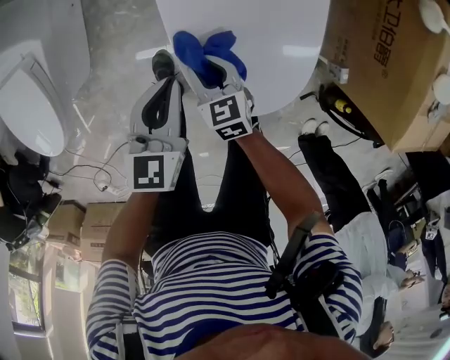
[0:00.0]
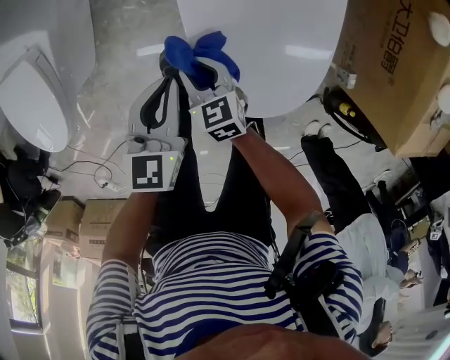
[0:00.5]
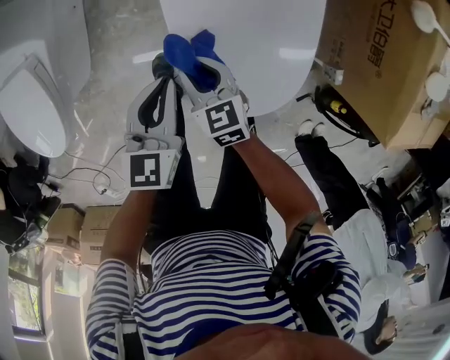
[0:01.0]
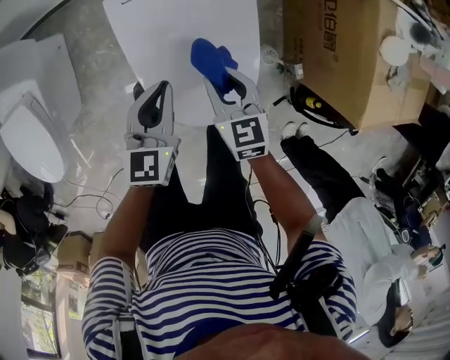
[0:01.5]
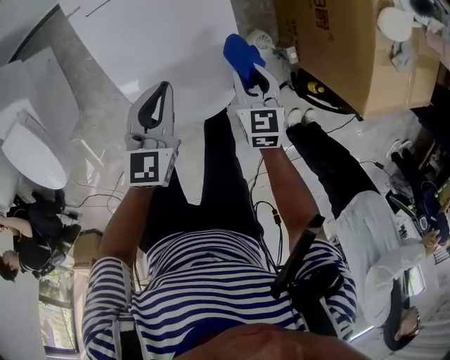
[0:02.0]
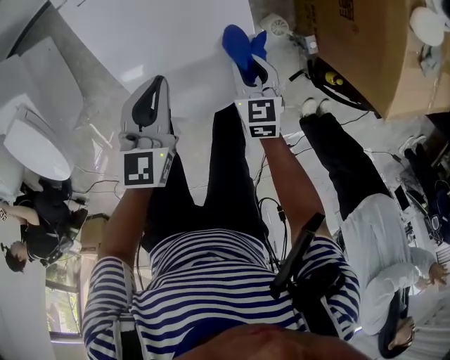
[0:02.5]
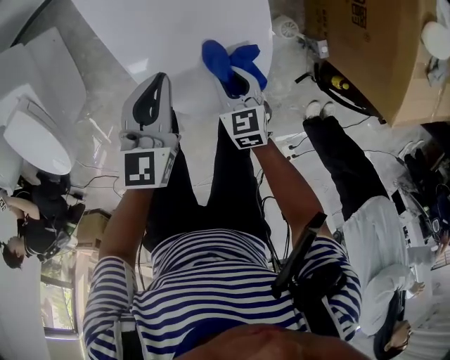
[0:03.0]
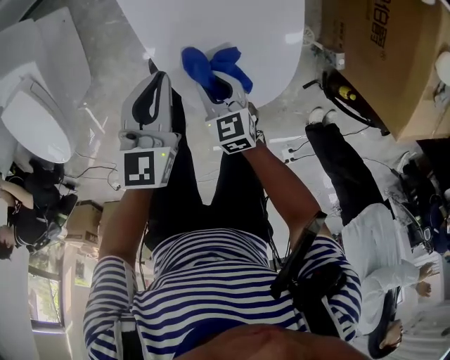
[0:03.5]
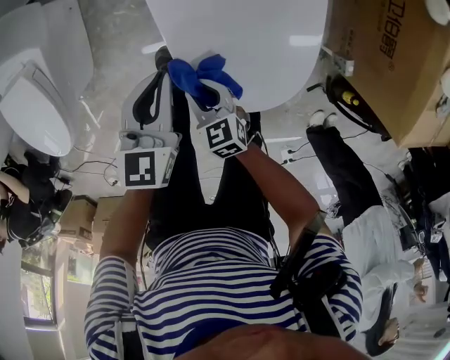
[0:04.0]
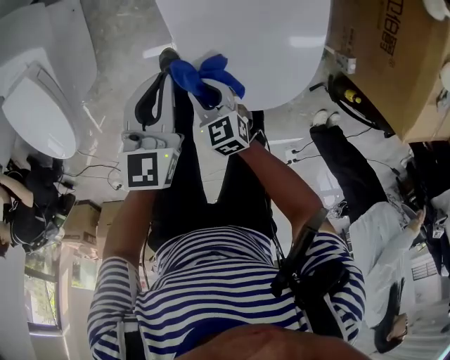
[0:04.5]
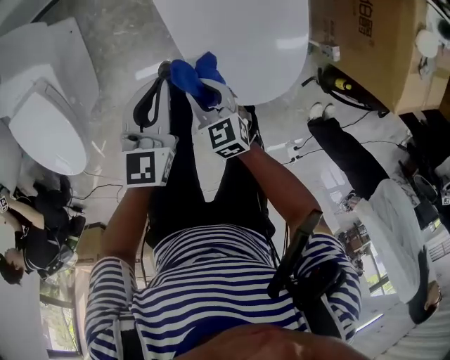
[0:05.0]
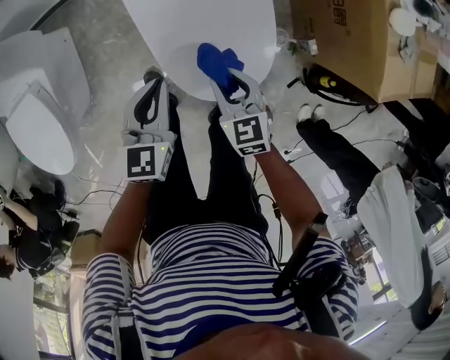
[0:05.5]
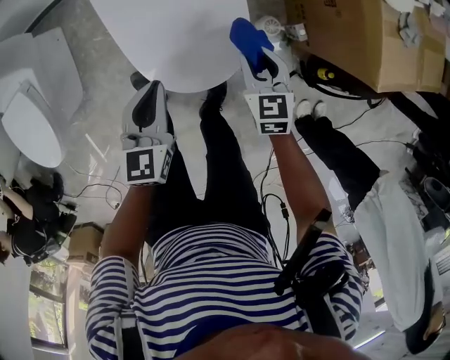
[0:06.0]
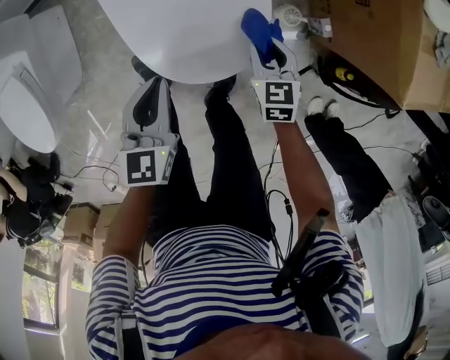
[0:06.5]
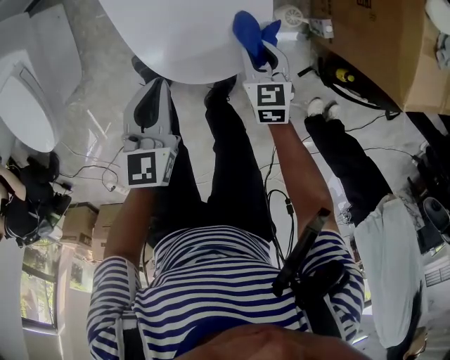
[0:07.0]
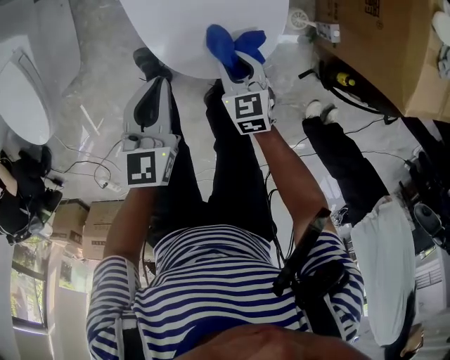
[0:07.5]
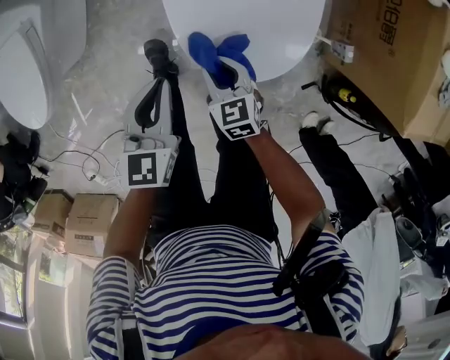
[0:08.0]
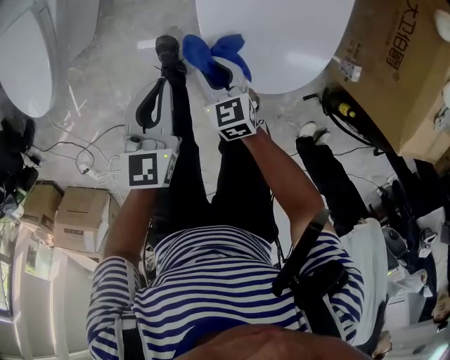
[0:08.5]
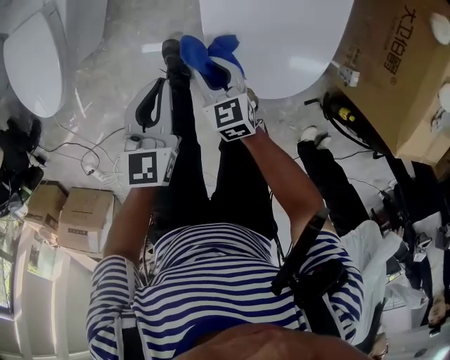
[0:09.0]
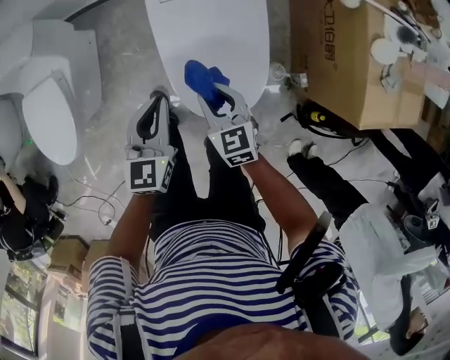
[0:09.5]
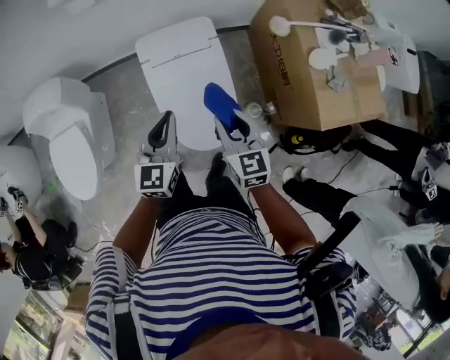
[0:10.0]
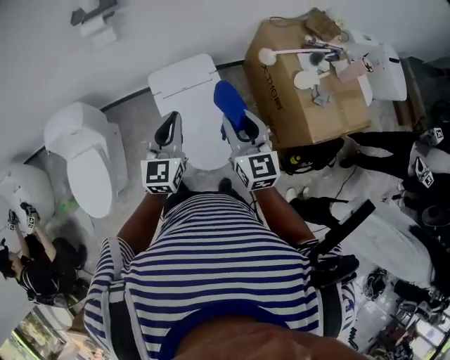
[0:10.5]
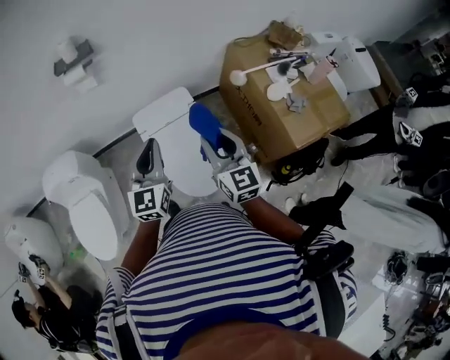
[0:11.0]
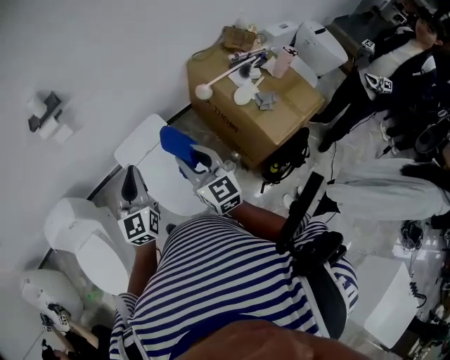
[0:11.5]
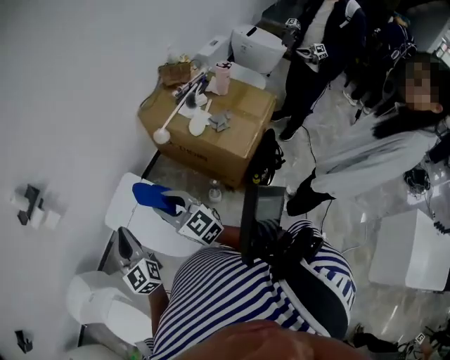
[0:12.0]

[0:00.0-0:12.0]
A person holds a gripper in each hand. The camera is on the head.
0:00.0 to 0:02.0: The right gripper shifts by roughly 30 cm, and changes its angle by approximately 30 degrees, while the left gripper shifts by approximately 20 cm.
0:02.0 to 0:04.0: The left gripper changes place by approximately 20 cm. The right gripper changes place by approximately 35 cm, and swivels some 30 degrees.
0:04.0 to 0:06.0: The right gripper heads to the right, covering approximately 30 cm, and changes its angle by some 30 degrees. The left gripper heads to the right, backward and upward, covering some 20 cm.
0:06.0 to 0:08.0: The left gripper shifts approximately 15 cm to the left and downward. The right gripper shifts roughly 25 cm to the left and downward, and turns by roughly 30 degrees.
0:08.0 to 0:10.0: Both grippers move upward, approximately 40 cm. The right gripper changes its angle by some 30 degrees, while the left gripper rotates approximately 20 degrees.
0:10.0 to 0:12.0: Both grippers travel together upward, roughly 15 cm.

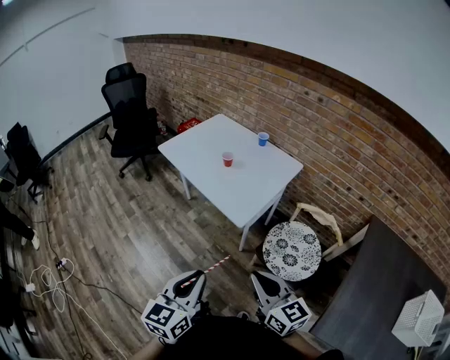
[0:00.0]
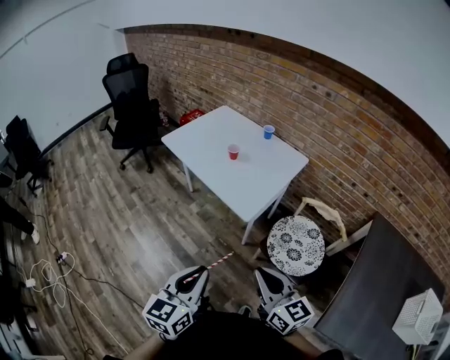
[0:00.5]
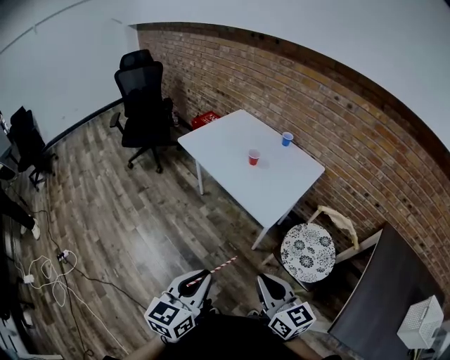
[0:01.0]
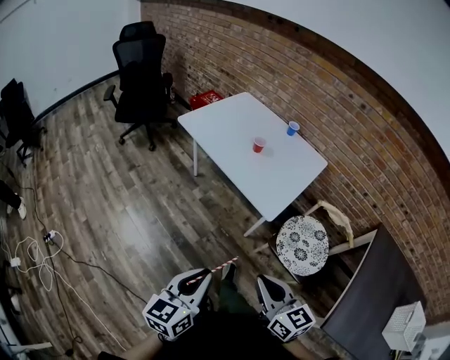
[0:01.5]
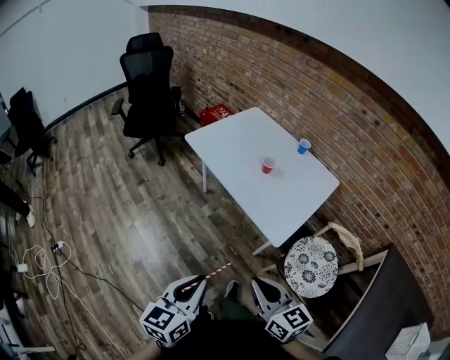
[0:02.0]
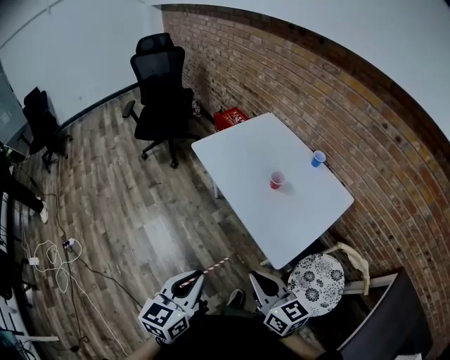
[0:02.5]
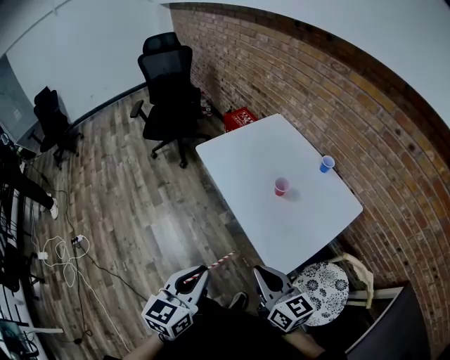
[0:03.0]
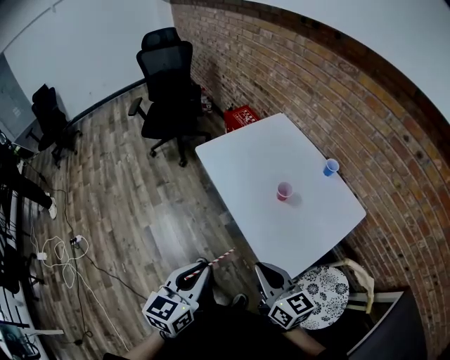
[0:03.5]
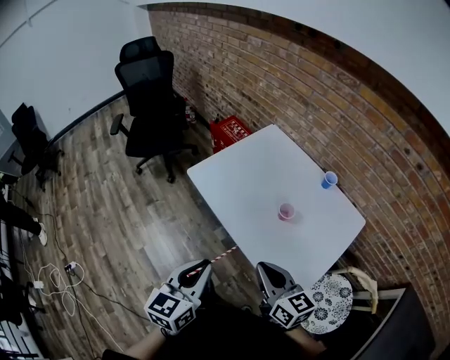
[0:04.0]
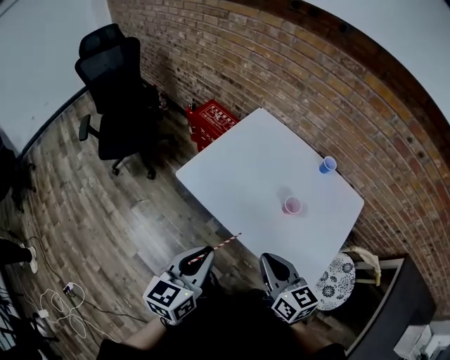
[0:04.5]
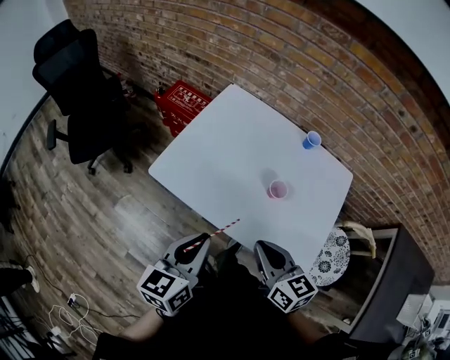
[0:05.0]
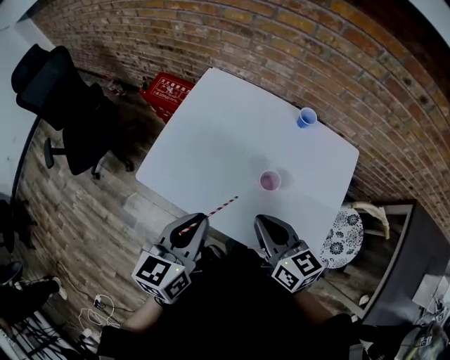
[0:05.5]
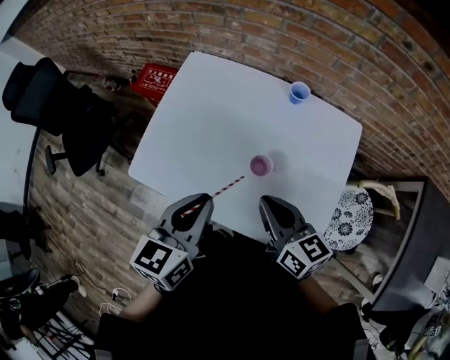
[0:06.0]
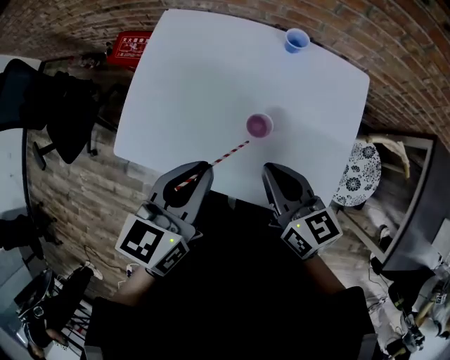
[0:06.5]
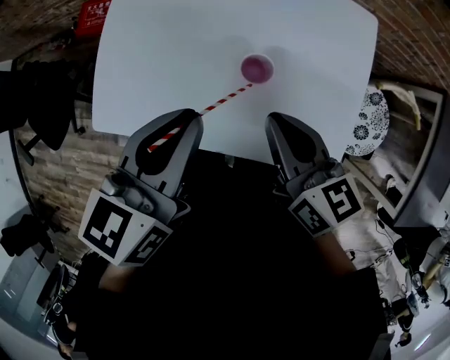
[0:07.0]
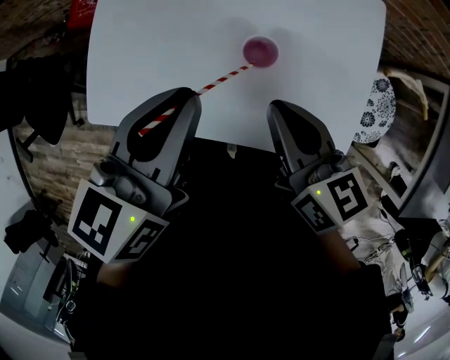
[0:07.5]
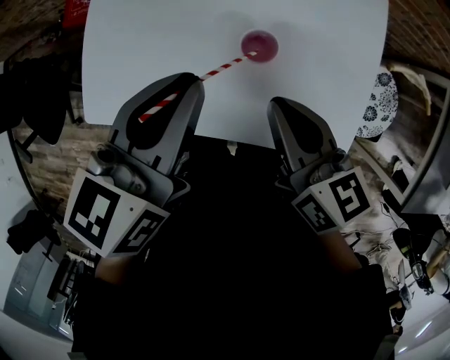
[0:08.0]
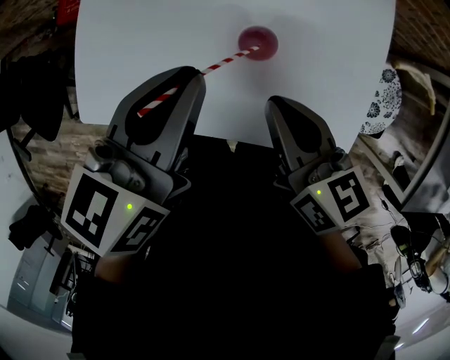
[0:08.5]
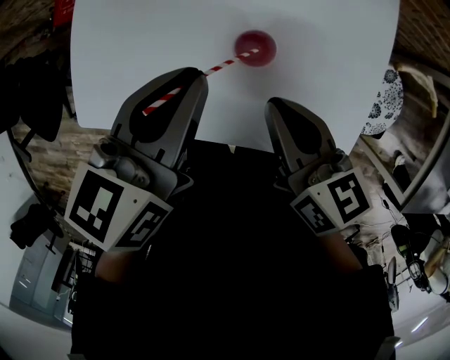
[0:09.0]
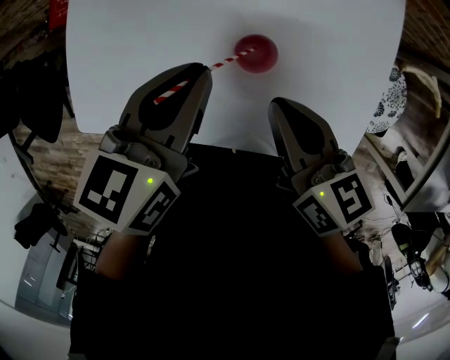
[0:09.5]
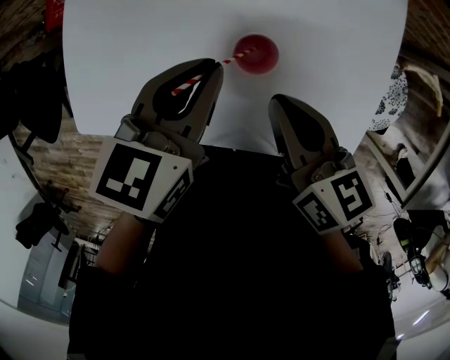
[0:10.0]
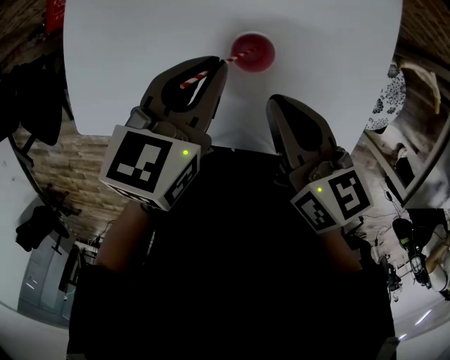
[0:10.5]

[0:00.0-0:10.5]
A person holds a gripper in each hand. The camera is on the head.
0:00.0 to 0:02.0: Both grippers travel together to the left and forward, some 20 cm.
0:02.0 to 0:04.0: The two grippers go roughly 35 cm forward.
0:04.0 to 0:06.5: The left gripper moves roughly 30 cm, and rotates some 40 degrees. Meanwhile the right gripper shifts by roughly 25 cm, and rotates roughly 30 degrees.
0:06.5 to 0:08.5: The left gripper goes some 10 cm downward and forward, while the right gripper is displaced downward by about 10 cm.
0:08.5 to 0:10.5: The left gripper heads downward, covering about 10 cm.

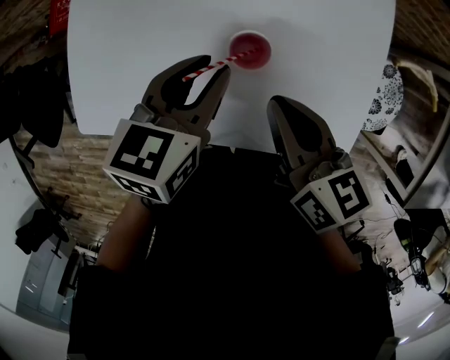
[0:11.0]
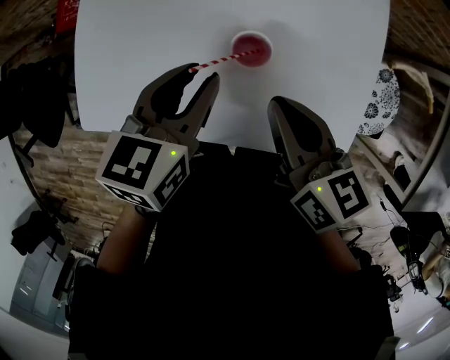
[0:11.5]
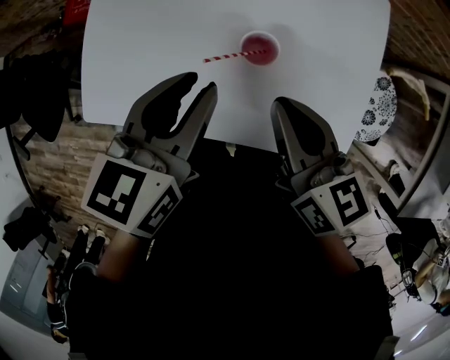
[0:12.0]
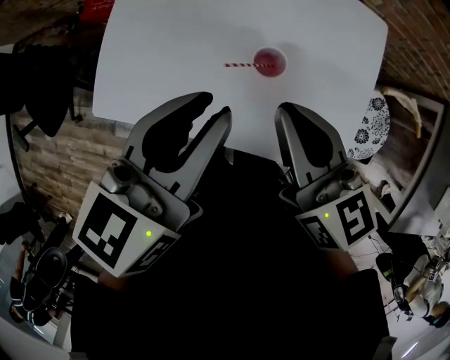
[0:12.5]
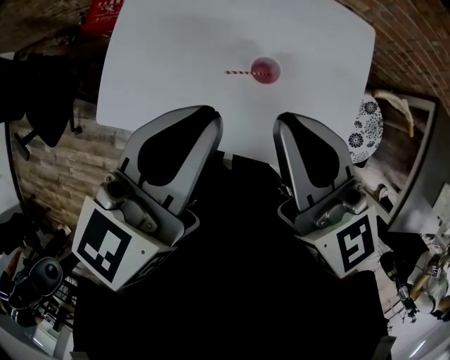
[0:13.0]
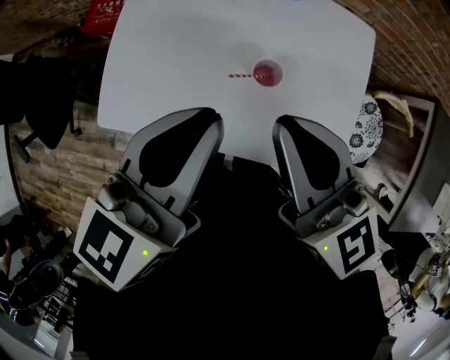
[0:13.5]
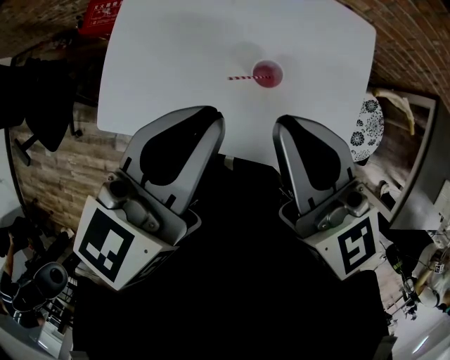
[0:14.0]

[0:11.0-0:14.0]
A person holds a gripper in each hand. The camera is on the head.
0:11.0 to 0:12.5: Both grippers move upward, some 15 cm.
0:12.5 to 0:14.0: The left gripper ends up approximately 5 cm from where it was; the right gripper is displaced upward by about 10 cm.

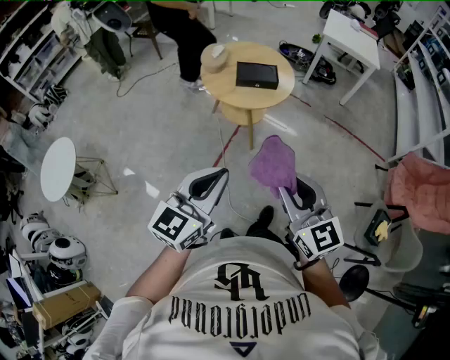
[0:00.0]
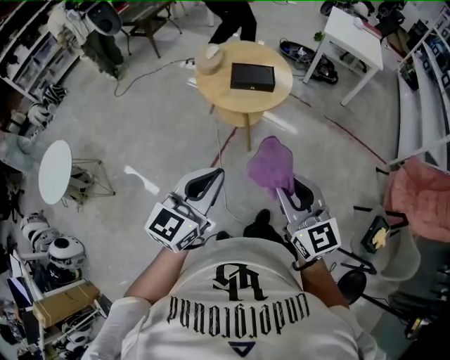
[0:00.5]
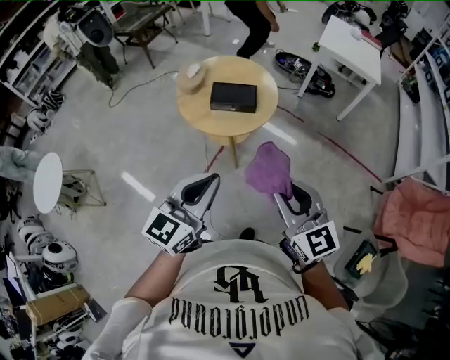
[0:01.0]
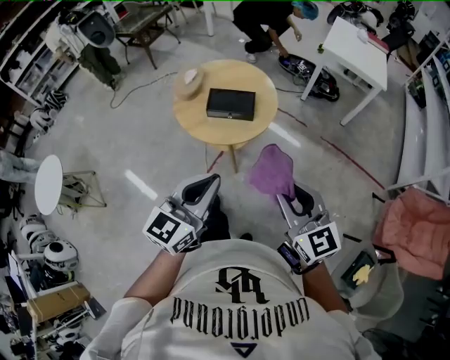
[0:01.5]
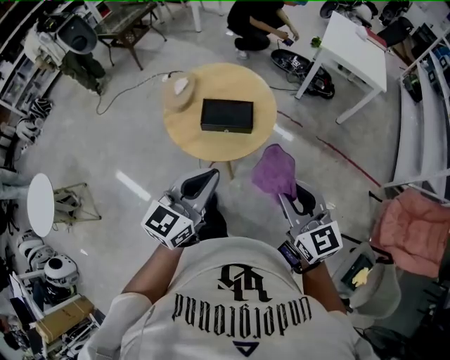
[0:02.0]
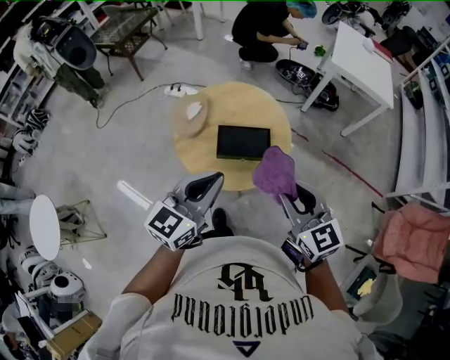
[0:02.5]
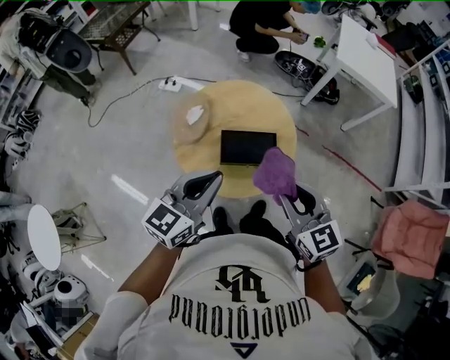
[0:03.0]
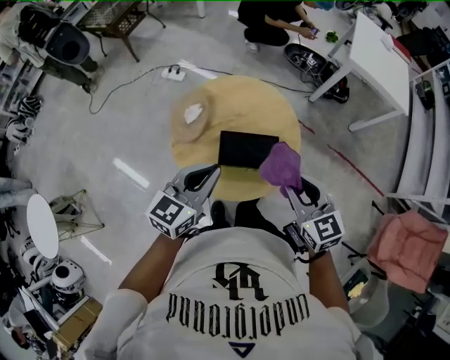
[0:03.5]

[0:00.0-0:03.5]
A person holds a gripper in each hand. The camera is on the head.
0:00.0 to 0:02.0: The pair of grippers is taken forward and to the right, about 40 cm.
0:02.0 to 0:03.5: The right gripper is displaced forward by approximately 30 cm. The left gripper heads forward and to the left, covering about 30 cm.
